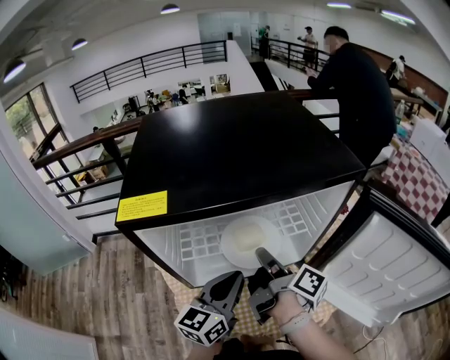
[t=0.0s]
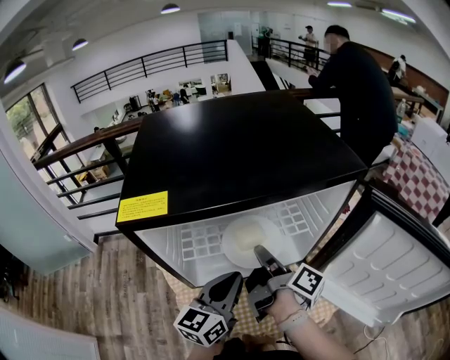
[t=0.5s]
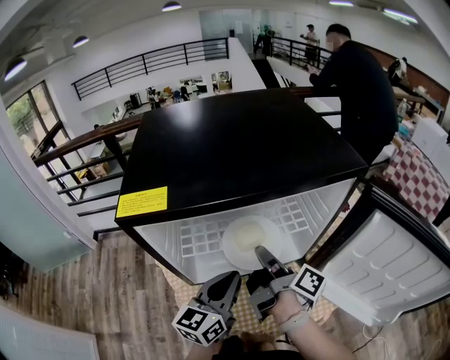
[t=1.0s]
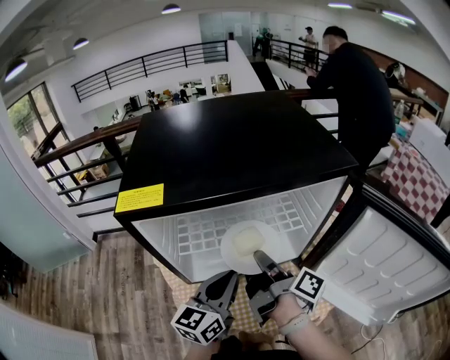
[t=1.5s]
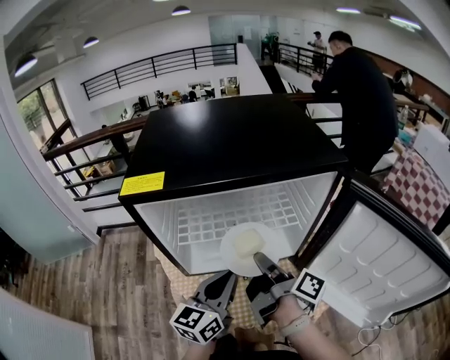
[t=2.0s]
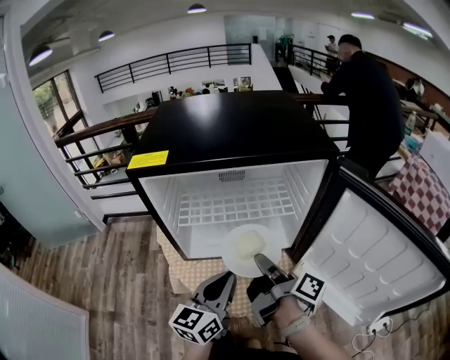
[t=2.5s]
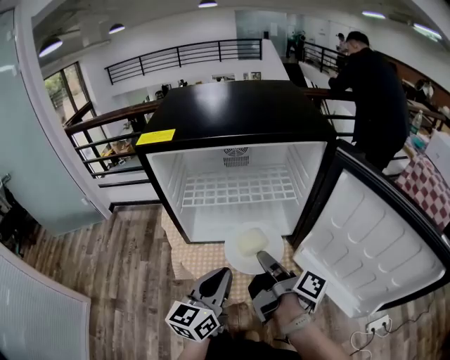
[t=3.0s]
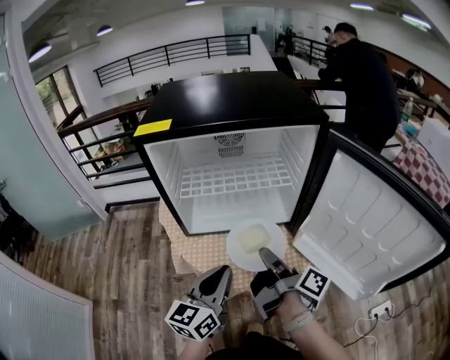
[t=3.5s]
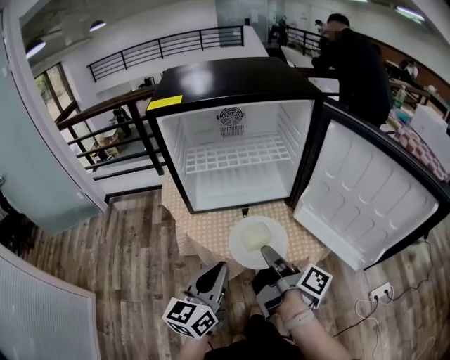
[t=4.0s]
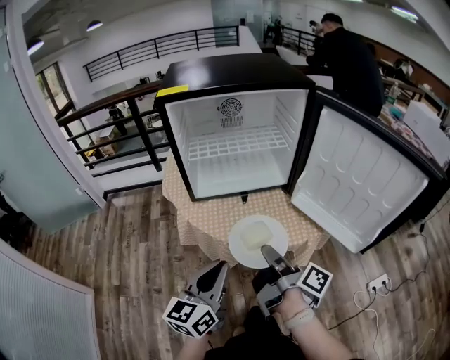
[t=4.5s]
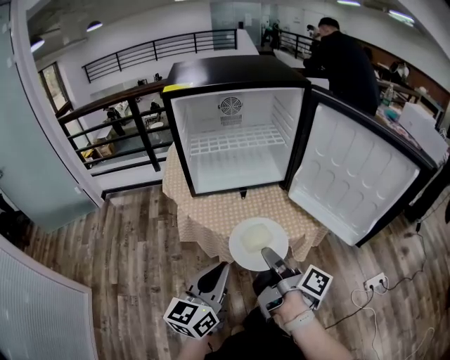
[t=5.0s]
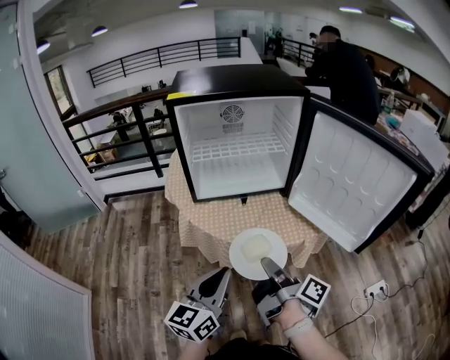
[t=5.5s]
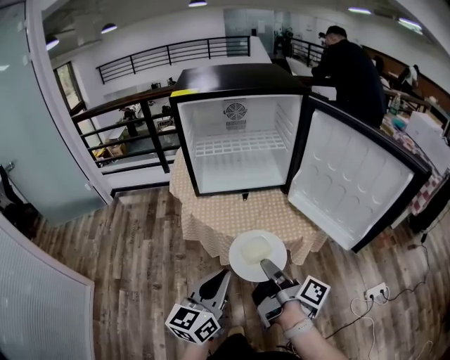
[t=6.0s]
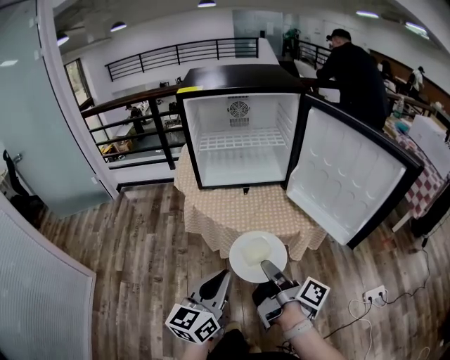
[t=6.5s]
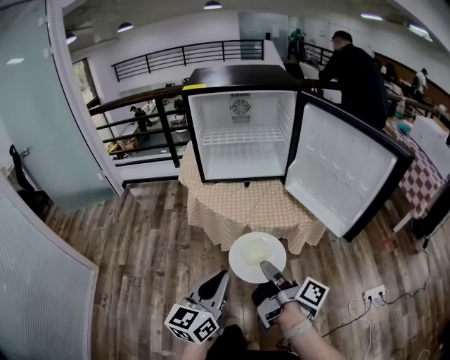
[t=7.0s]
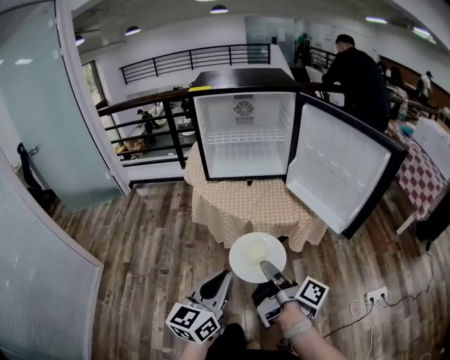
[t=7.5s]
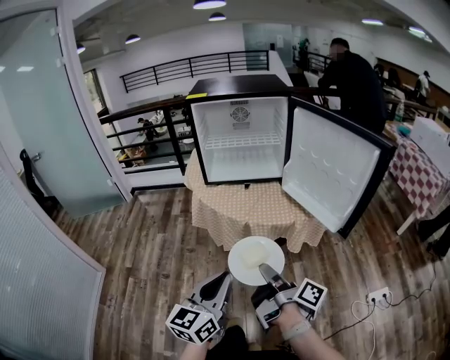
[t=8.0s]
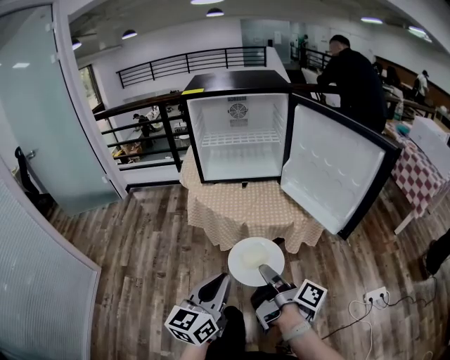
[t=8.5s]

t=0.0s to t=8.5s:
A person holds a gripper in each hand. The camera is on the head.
t=0.0s to t=2.0s: The right gripper moves some 5 cm.
t=2.0s to t=4.0s: The grippers both shift backward by about 20 cm.
t=4.0s to t=6.5s: Both grippers move backward, about 20 cm.
t=6.5s to t=8.5s: The grippers both shift backward by about 10 cm.

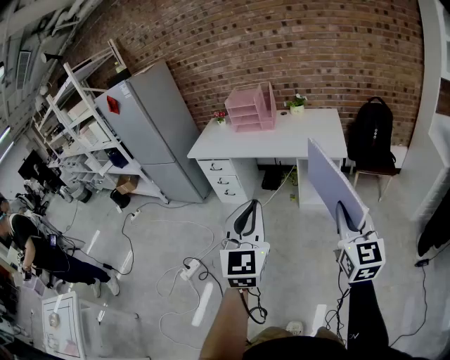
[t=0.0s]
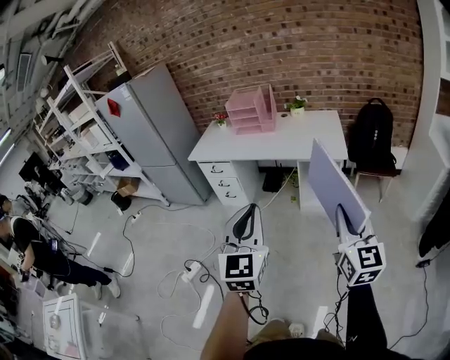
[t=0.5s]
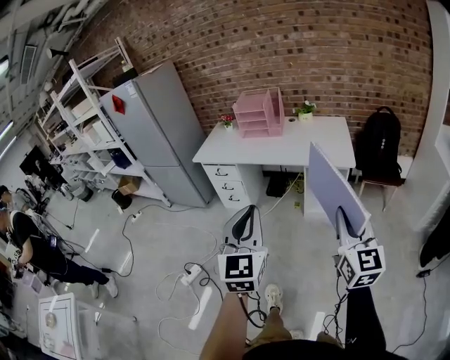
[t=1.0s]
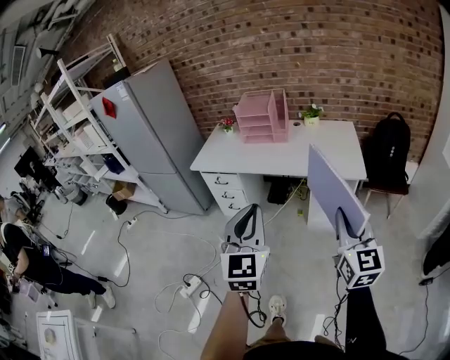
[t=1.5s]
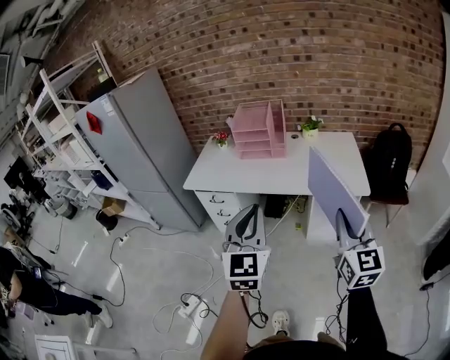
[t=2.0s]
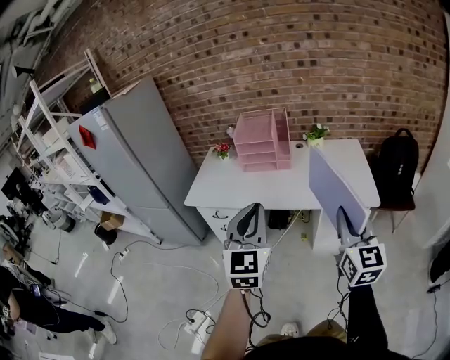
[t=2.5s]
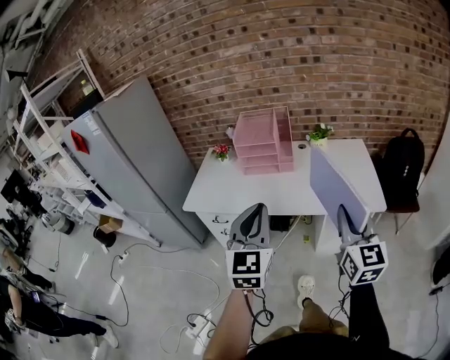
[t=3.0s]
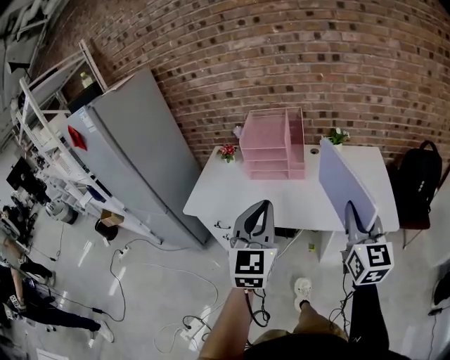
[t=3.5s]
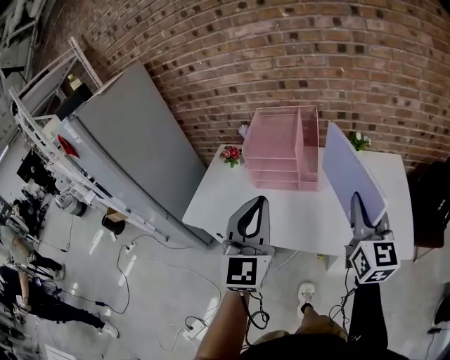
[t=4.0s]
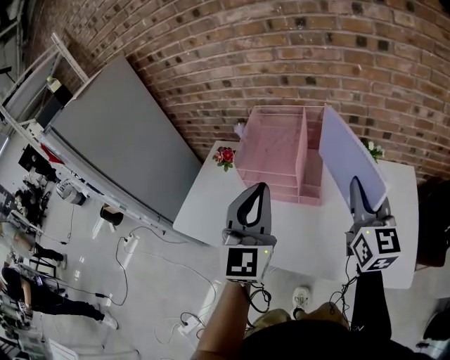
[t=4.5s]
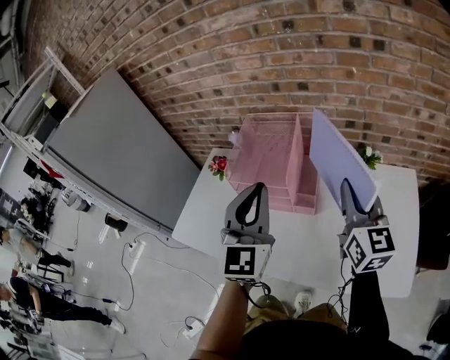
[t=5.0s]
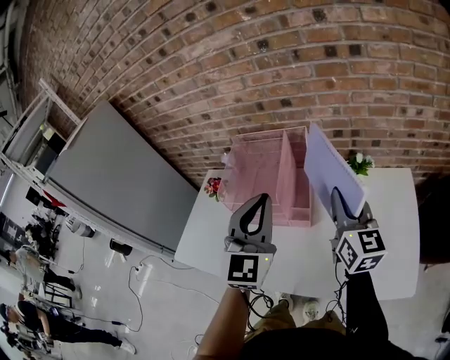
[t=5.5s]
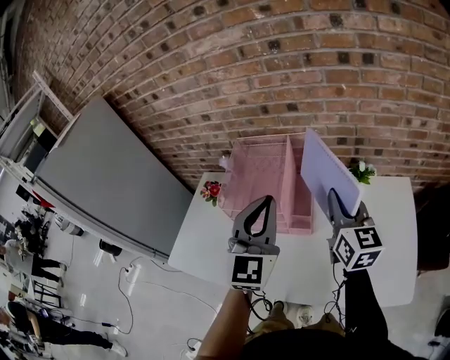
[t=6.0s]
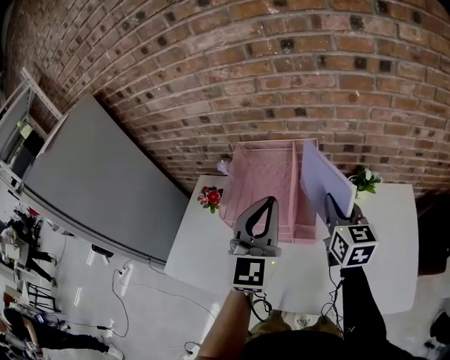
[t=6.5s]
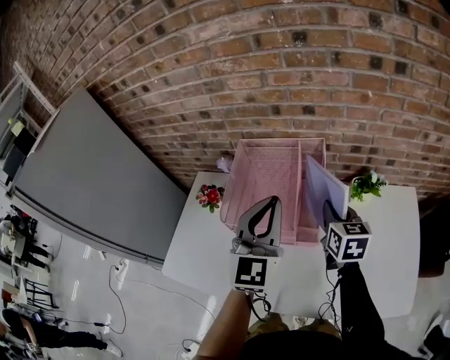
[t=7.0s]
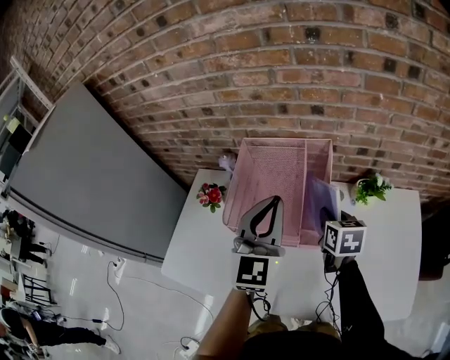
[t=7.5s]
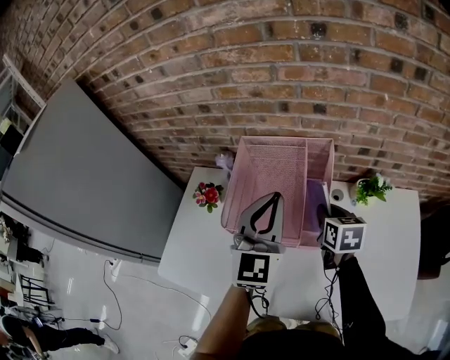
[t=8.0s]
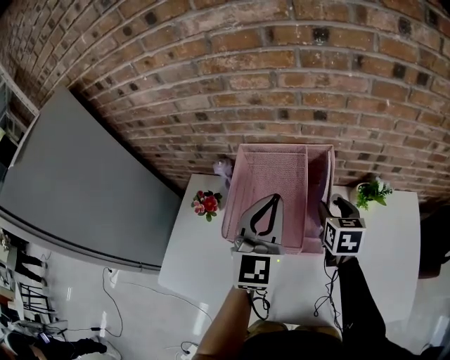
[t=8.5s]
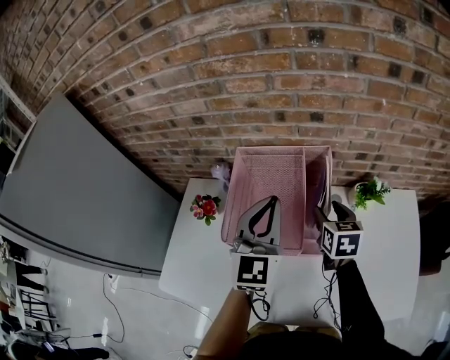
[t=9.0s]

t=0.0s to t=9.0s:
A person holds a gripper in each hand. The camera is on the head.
t=0.0s to t=2.0s: The right gripper travels forward and to the left by about 30 cm, while the left gripper heads forward, covering some 30 cm.
t=2.0s to t=4.5s: Both grippers are carried forward, some 60 cm.
t=4.5s to t=7.0s: The right gripper heads forward and downward, covering approximately 25 cm, and rotates roughly 30 degrees, while the left gripper is displaced forward by roughly 20 cm.
t=7.0s to t=9.0s: The two grippers go some 5 cm forward. The right gripper opens.

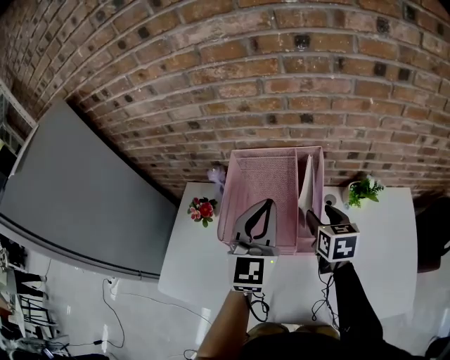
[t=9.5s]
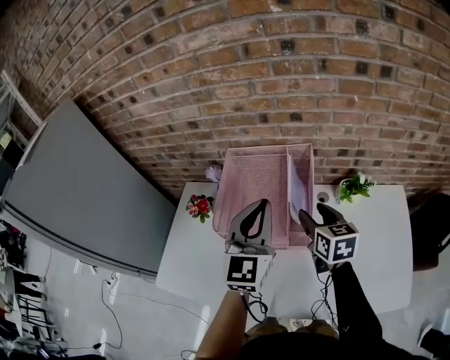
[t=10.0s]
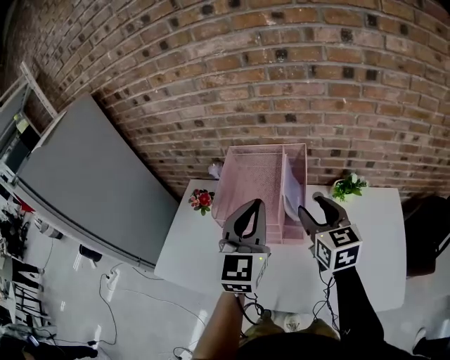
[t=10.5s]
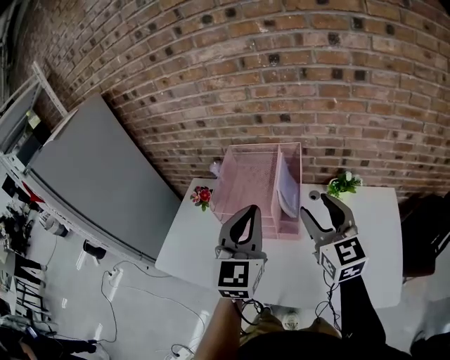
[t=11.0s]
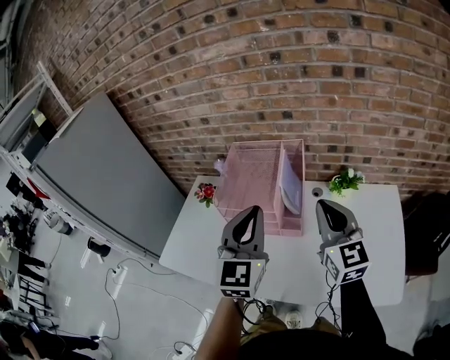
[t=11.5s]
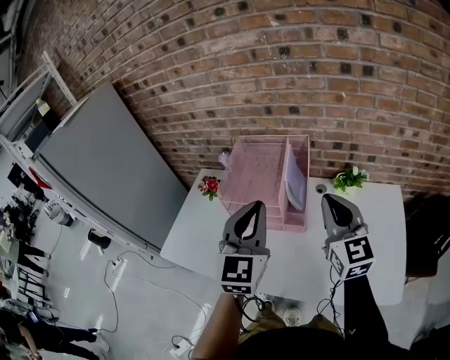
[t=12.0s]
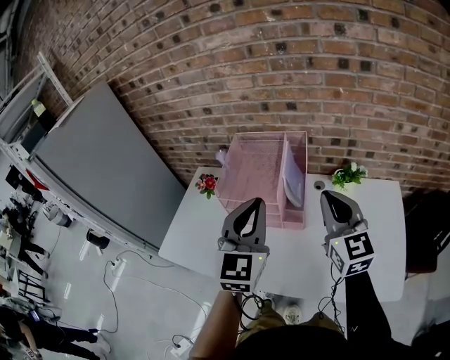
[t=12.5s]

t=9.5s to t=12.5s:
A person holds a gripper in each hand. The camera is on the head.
t=9.5s to t=11.0s: The right gripper travels upward and backward by roughly 25 cm, and angles its fingers upward, by about 30 degrees. The left gripper shifts roughly 15 cm backward.
t=11.0s to t=12.5s: The right gripper closes its fingers.

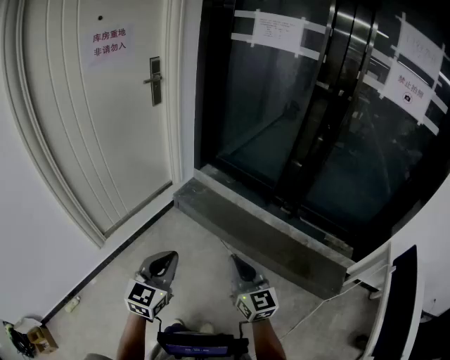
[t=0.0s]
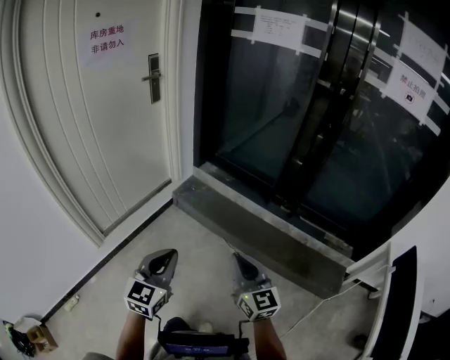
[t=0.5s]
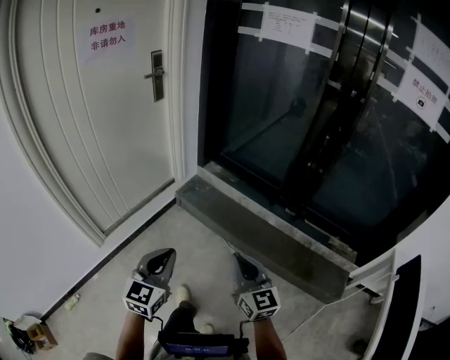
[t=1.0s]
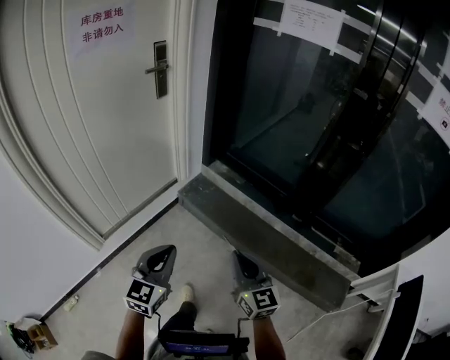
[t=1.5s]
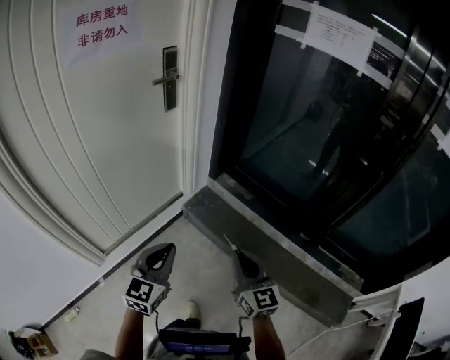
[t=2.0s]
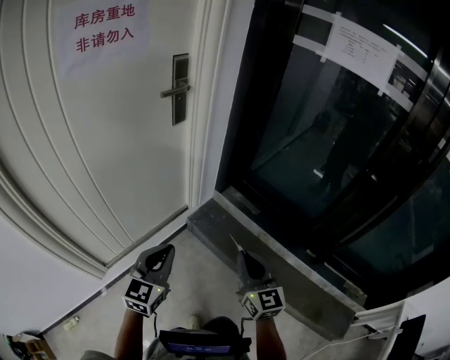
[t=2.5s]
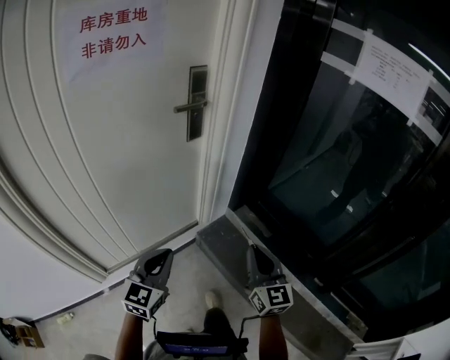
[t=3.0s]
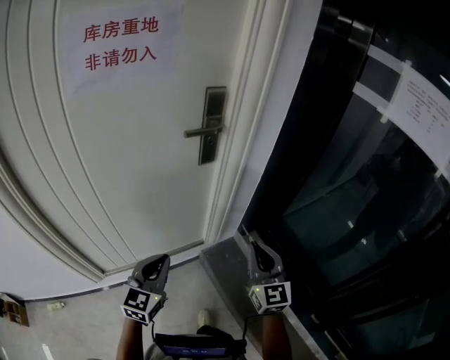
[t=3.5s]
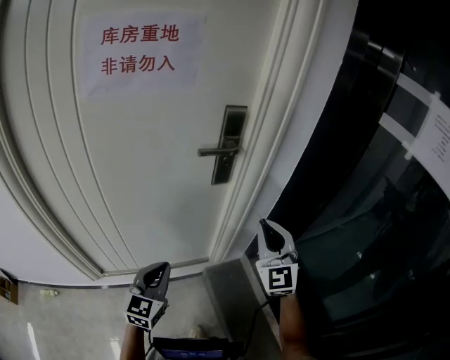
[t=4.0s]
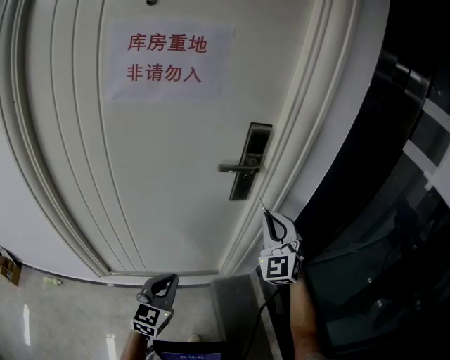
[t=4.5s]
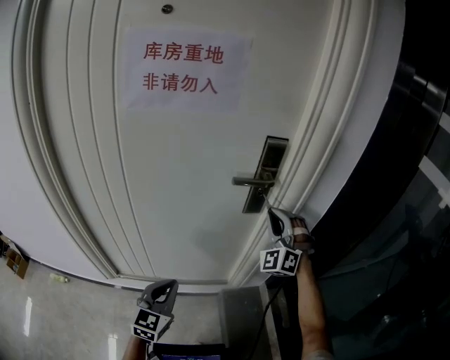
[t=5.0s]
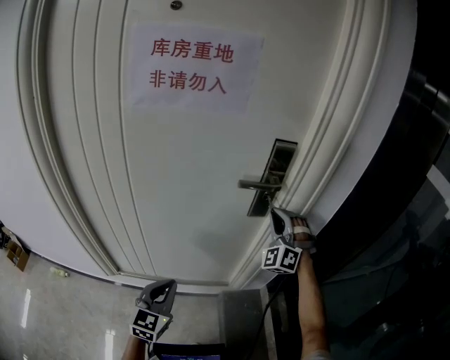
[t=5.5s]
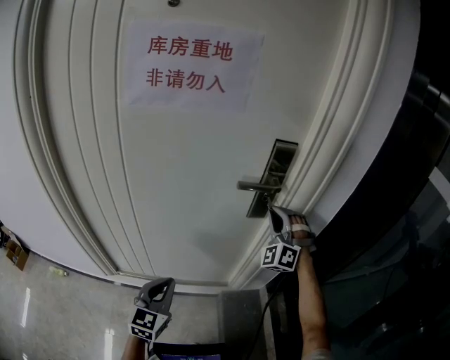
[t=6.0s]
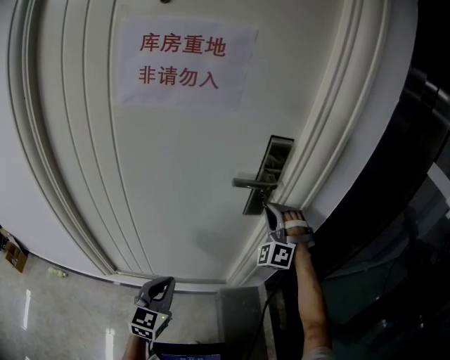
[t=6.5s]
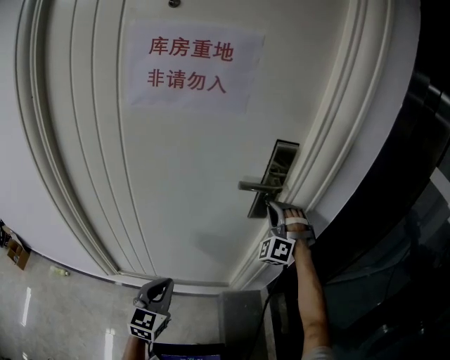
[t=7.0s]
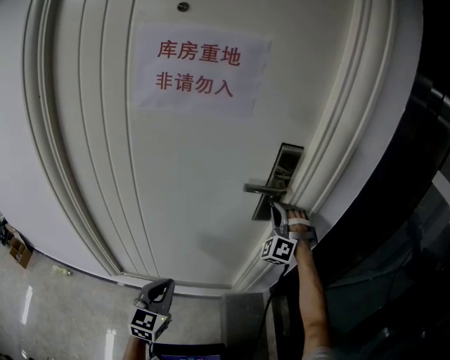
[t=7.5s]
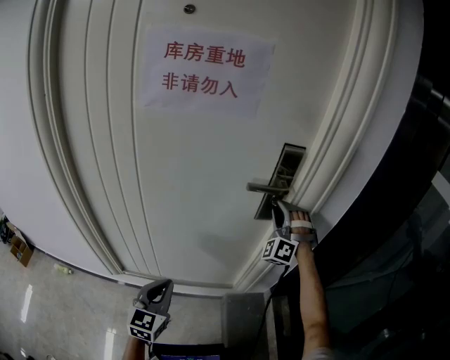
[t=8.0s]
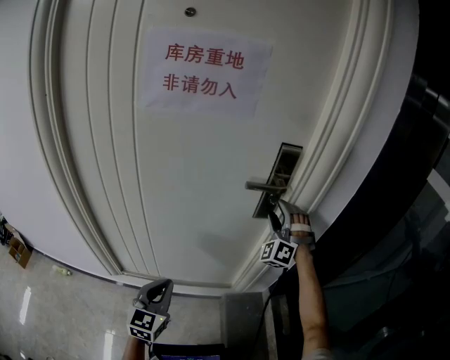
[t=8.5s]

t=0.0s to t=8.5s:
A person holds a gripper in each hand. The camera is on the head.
t=0.0s to t=2.0s: The grippers both shift forward by roughly 30 cm.
t=2.0s to t=4.0s: The right gripper changes place by roughly 50 cm, and changes its angle by some 40 degrees. The left gripper changes place by about 30 cm, and turns by roughly 30 degrees.
t=4.0s to t=6.5s: The right gripper heads forward, covering approximately 20 cm, and rotates around the line of its fingers by approximately 50 degrees, counterclockwise from behind.
t=6.5s to t=8.5s: The right gripper opens its fingers.
